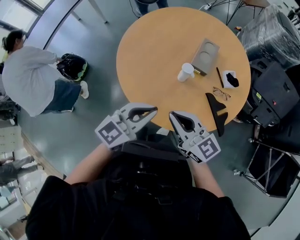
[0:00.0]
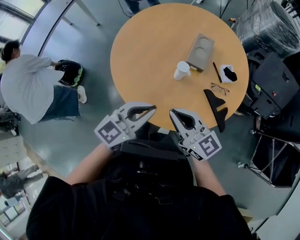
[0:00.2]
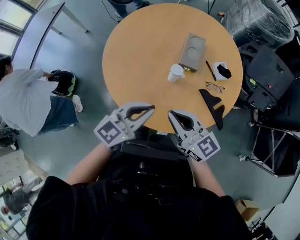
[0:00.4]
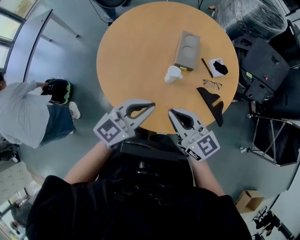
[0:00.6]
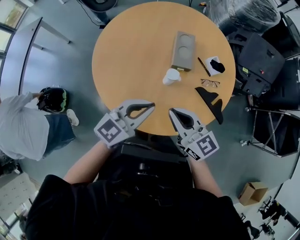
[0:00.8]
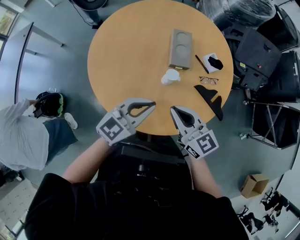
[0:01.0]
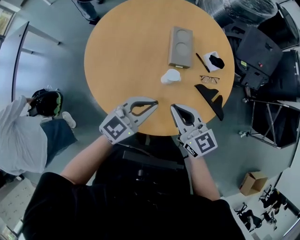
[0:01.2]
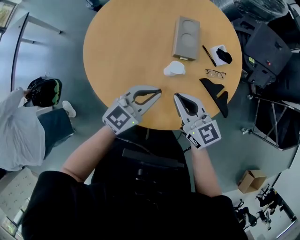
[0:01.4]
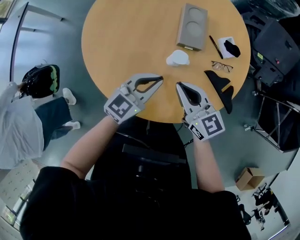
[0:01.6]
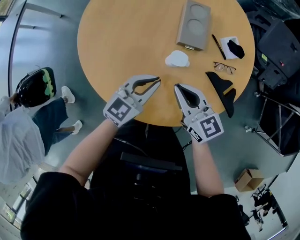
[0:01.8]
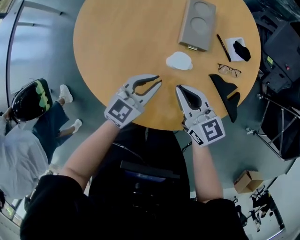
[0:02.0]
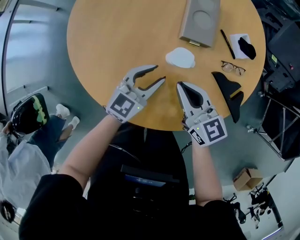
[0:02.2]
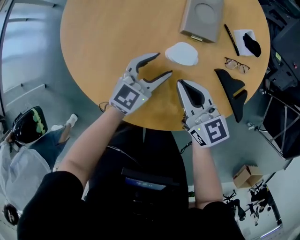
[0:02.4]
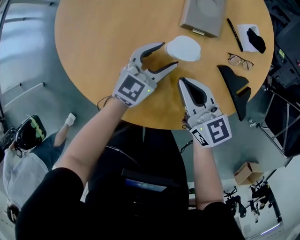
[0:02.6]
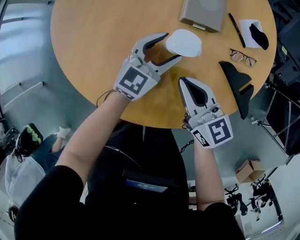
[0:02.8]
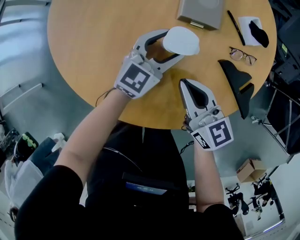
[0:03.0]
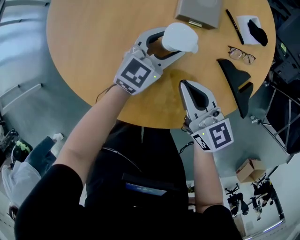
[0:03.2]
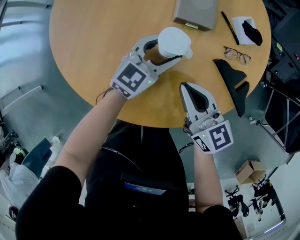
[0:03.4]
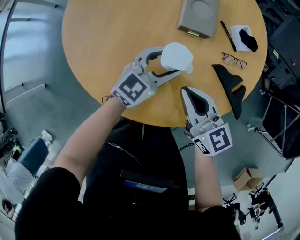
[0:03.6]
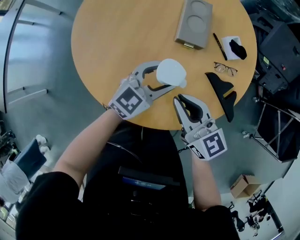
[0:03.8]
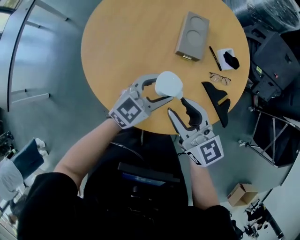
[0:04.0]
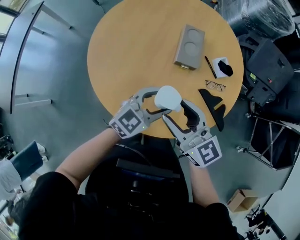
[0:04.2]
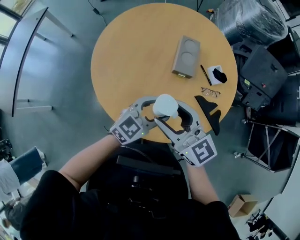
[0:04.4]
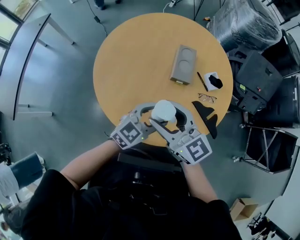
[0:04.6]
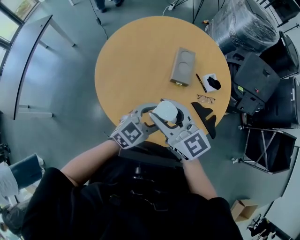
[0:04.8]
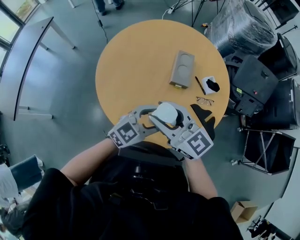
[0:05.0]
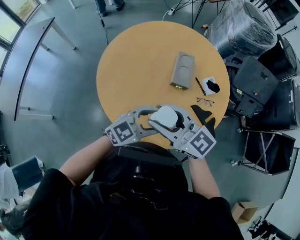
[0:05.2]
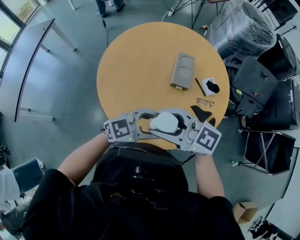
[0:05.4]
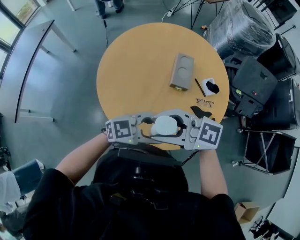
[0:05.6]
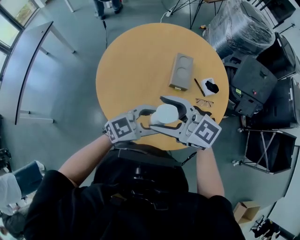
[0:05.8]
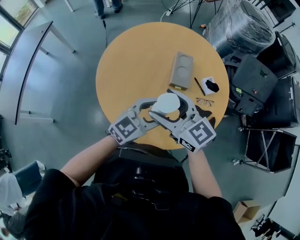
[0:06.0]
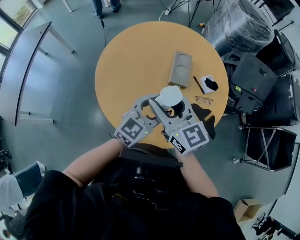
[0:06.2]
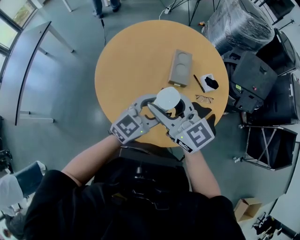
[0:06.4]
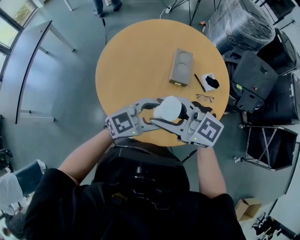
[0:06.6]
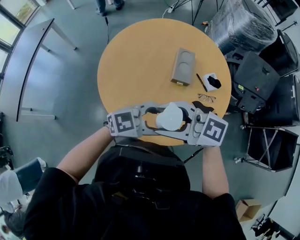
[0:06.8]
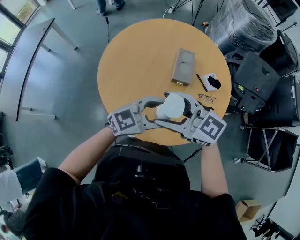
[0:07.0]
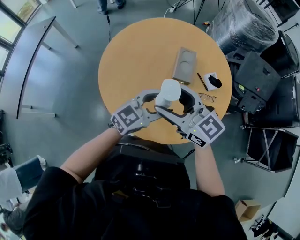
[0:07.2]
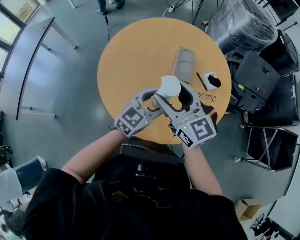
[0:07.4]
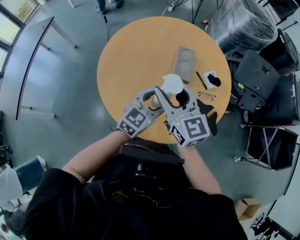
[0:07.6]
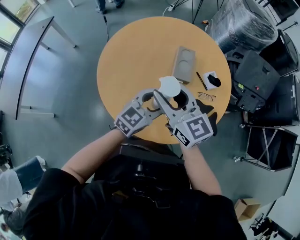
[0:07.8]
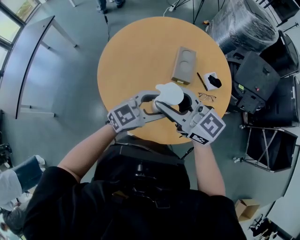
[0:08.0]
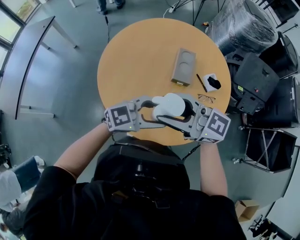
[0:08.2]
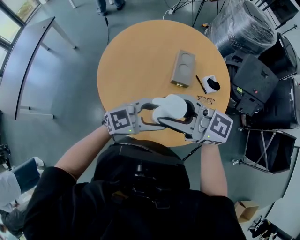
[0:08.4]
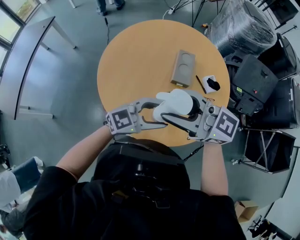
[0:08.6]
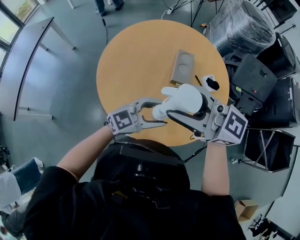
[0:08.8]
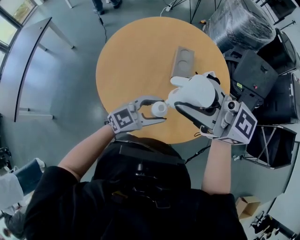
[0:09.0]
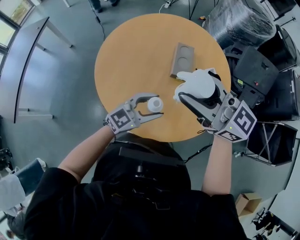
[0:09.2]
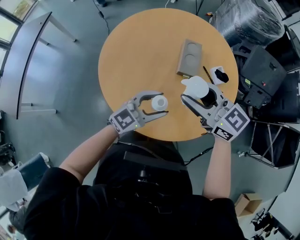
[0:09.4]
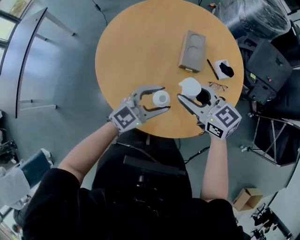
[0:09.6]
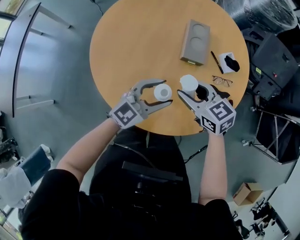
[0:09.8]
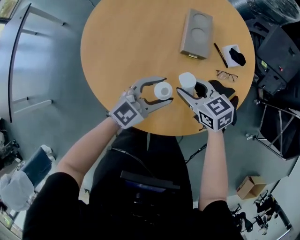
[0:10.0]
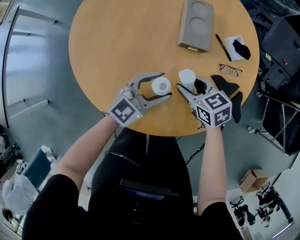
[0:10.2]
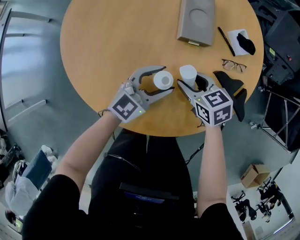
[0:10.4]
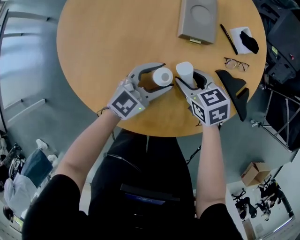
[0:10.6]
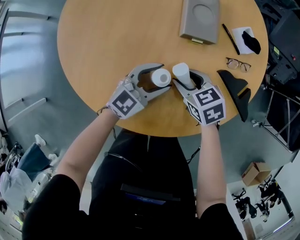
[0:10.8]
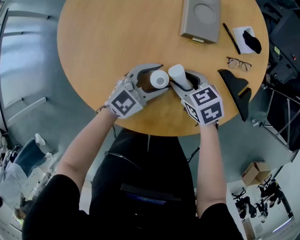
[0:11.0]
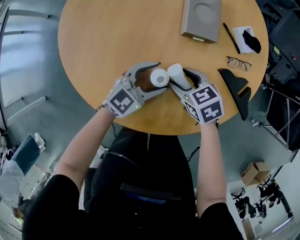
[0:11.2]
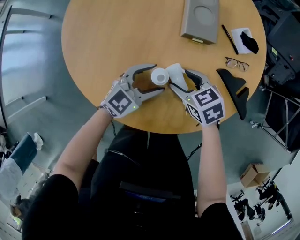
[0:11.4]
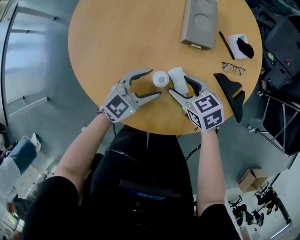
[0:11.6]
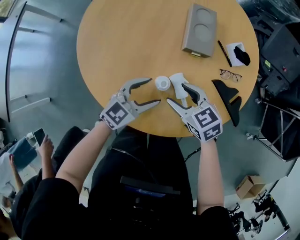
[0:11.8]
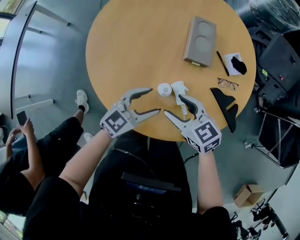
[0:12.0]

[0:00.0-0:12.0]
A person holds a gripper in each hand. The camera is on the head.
0:00.0 to 0:01.6: The left gripper ends up roughly 30 cm from where it was. Meanwhile the right gripper moves approximately 25 cm, and changes its angle by approximately 30 degrees.
0:01.6 to 0:03.0: The right gripper travels downward by approximately 20 cm. The left gripper shifts approximately 25 cm downward and forward, and opens up.
0:03.0 to 0:04.4: The right gripper travels upward by roughly 35 cm, turns by approximately 20 degrees, and opens its fingers, while the left gripper is displaced upward and backward by approximately 35 cm.
0:04.4 to 0:06.0: Both grippers travel together upward, roughly 10 cm.
0:07.6 to 0:09.0: The left gripper changes place by roughly 5 cm, and turns by roughly 30 degrees, while the right gripper travels upward by approximately 15 cm, and turns by about 40 degrees.
0:09.0 to 0:10.4: The right gripper shifts roughly 60 cm downward, and tilts its fingers some 60 degrees downward. The left gripper is displaced downward by some 30 cm.
0:10.4 to 0:12.0: The right gripper heads upward, backward and to the left, covering some 20 cm, while the left gripper shifts some 15 cm upward, to the left and backward.

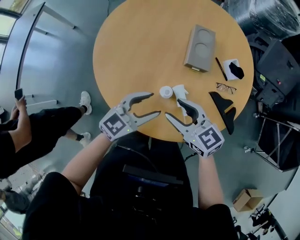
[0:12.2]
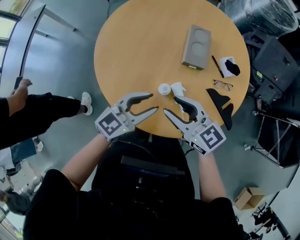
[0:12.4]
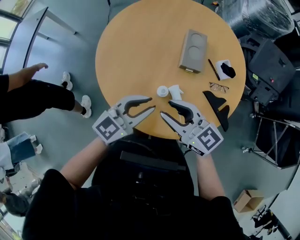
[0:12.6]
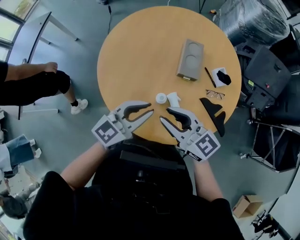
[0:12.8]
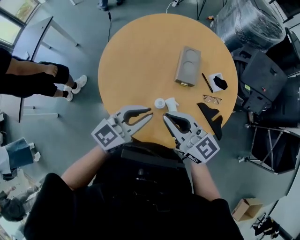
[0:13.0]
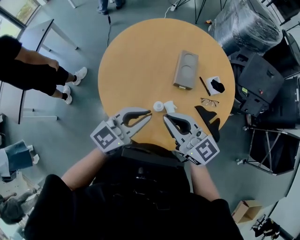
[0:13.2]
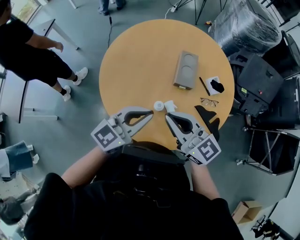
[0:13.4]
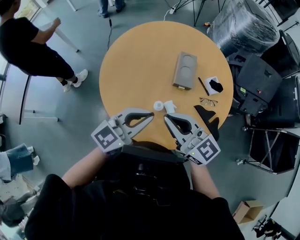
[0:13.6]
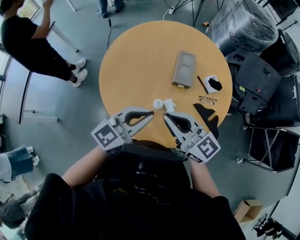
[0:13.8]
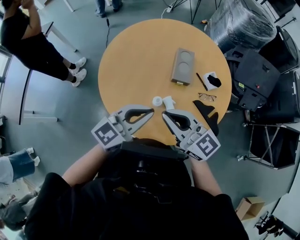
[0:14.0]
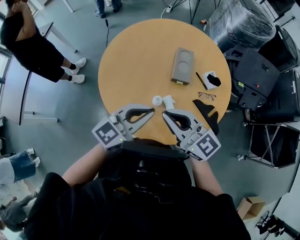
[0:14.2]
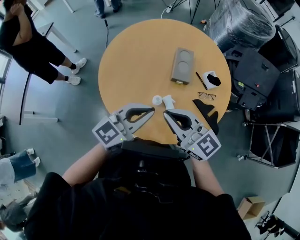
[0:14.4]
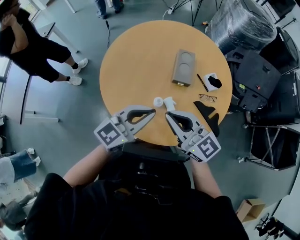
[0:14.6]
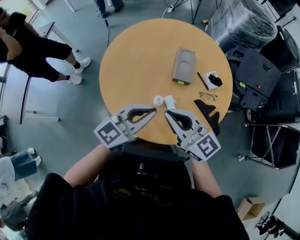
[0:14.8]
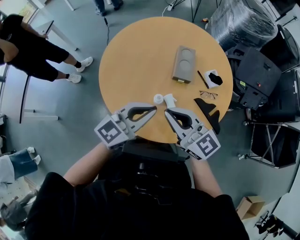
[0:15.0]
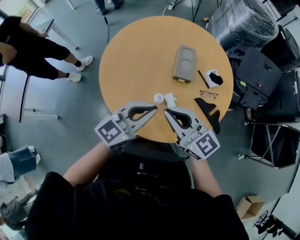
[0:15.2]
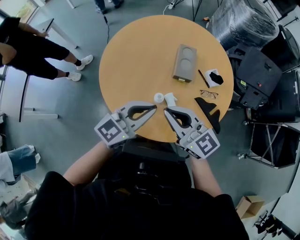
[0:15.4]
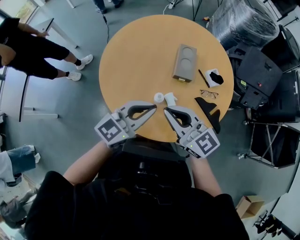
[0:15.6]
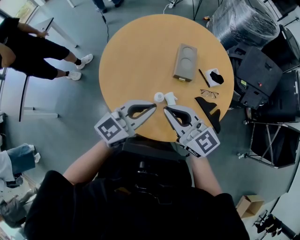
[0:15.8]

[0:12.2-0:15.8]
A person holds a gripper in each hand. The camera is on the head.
0:12.2 to 0:14.0: The grippers both shift upward by about 25 cm. The right gripper rotates roughly 20 degrees, and closes. The left gripper closes up.
0:14.0 to 0:15.8: There are only small adjustments of the grippers.

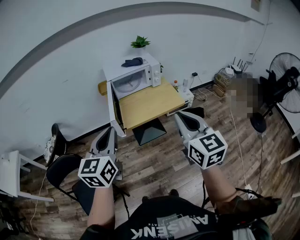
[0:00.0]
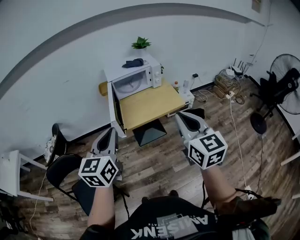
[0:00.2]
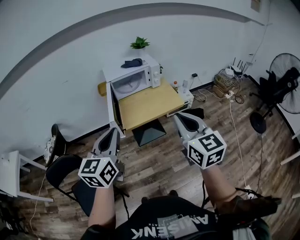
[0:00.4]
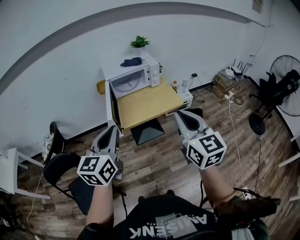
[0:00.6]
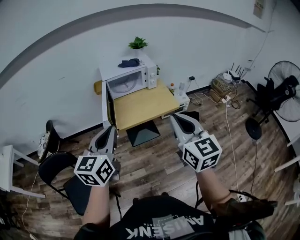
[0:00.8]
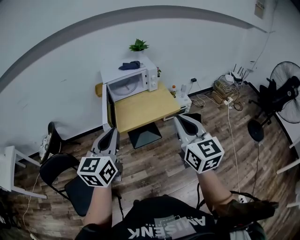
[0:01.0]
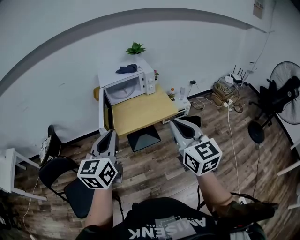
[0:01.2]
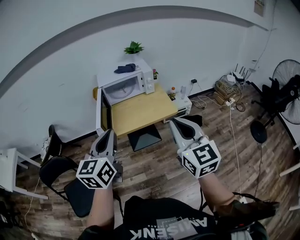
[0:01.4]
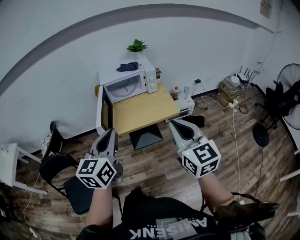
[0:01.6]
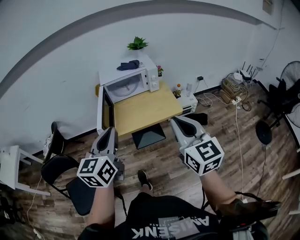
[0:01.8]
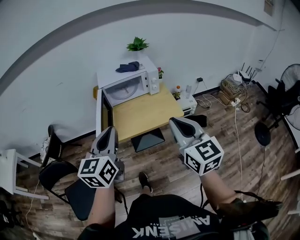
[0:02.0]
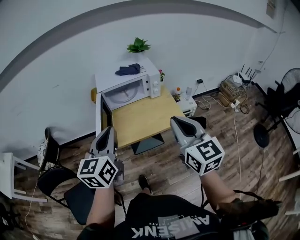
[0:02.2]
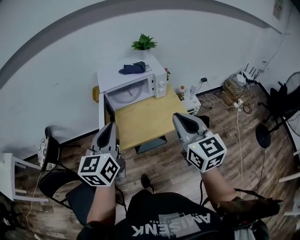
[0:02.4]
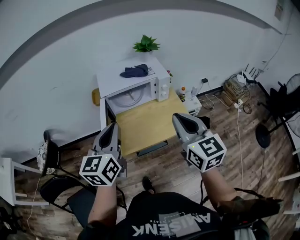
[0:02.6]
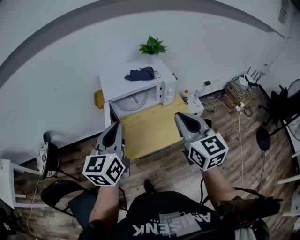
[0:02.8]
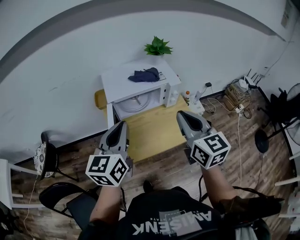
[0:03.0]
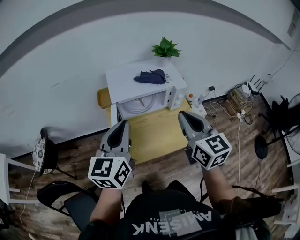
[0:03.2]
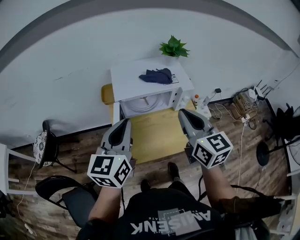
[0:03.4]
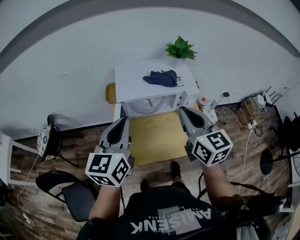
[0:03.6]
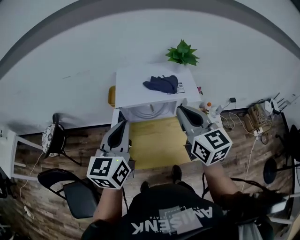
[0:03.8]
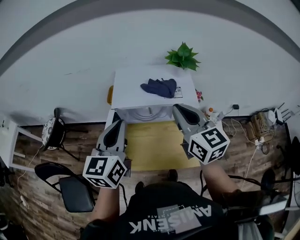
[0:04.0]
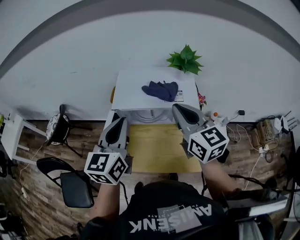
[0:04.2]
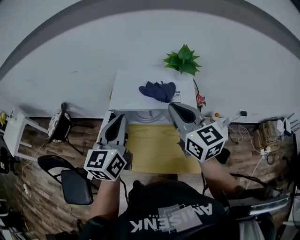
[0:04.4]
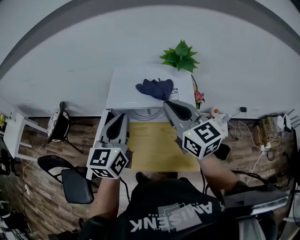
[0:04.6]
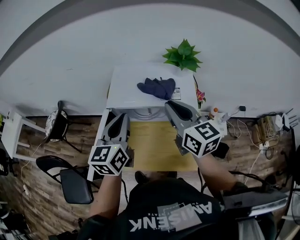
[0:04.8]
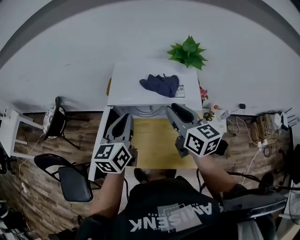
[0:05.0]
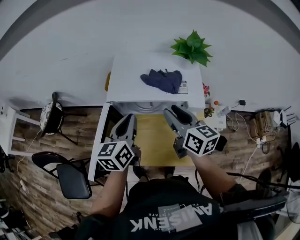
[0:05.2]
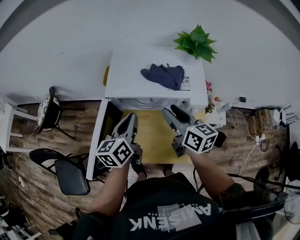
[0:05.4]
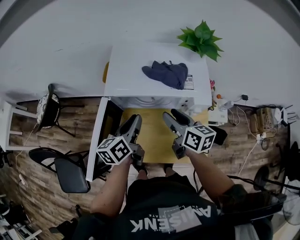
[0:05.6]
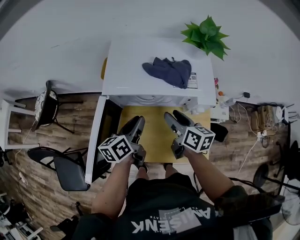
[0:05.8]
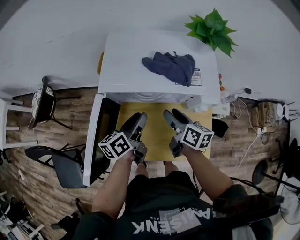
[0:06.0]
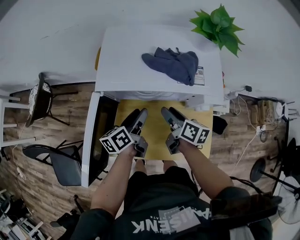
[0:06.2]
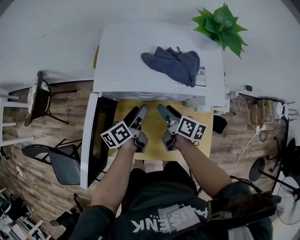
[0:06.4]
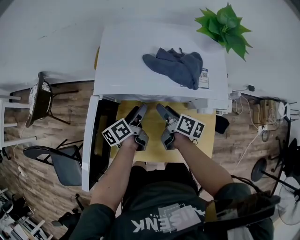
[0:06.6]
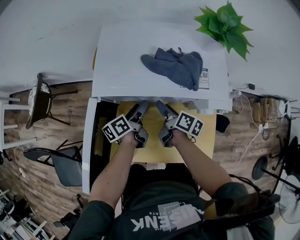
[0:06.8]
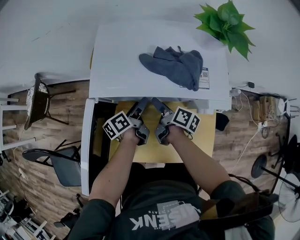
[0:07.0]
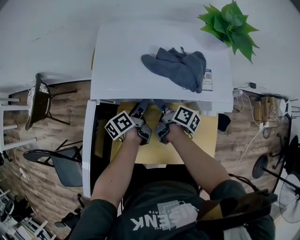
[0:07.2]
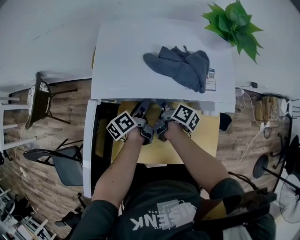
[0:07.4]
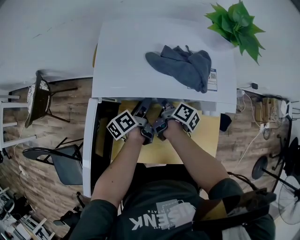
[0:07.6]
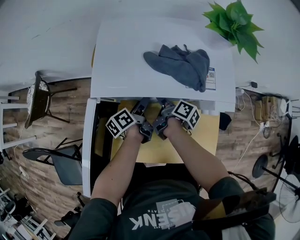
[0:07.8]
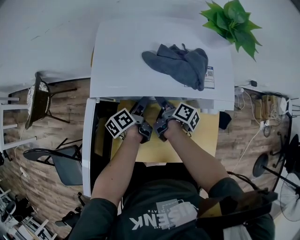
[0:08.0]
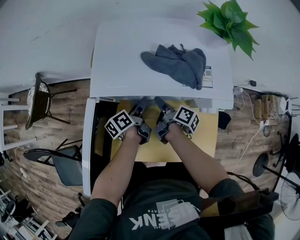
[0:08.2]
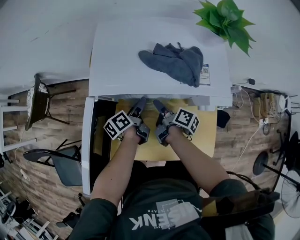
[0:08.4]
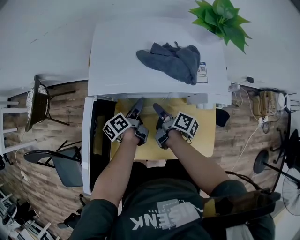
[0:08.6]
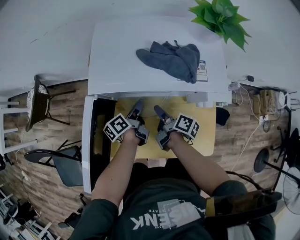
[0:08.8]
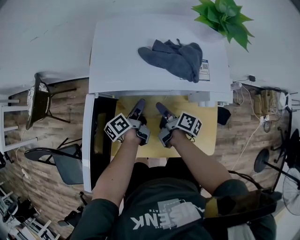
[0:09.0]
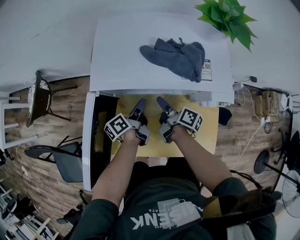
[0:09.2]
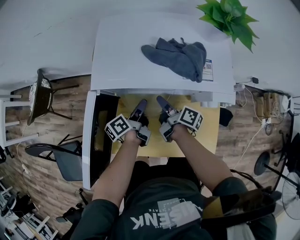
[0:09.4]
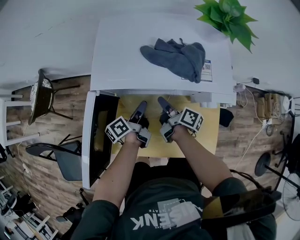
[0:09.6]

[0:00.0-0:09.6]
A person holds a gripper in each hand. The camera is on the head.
0:00.0 to 0:01.6: Both grippers move to the right, roughly 10 cm.
0:01.6 to 0:03.2: Both grippers move forward, roughly 35 cm.
0:03.2 to 0:04.8: The left gripper shifts by some 15 cm, and changes its angle by approximately 20 degrees. The right gripper shifts by approximately 20 cm, and swivels some 30 degrees.
0:04.8 to 0:06.4: The two grippers go some 30 cm downward. The right gripper rolls clockwise, seen from behind, by roughly 50 degrees, and opens. The left gripper rolls counterclockwise, seen from behind, by some 50 degrees, and opens up.
0:06.4 to 0:08.0: Both grippers move downward, about 5 cm. The right gripper changes its angle by approximately 30 degrees.
0:08.0 to 0:09.6: The left gripper closes up. Meanwhile the right gripper closes its fingers.
